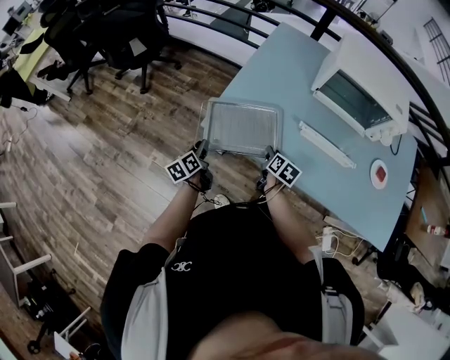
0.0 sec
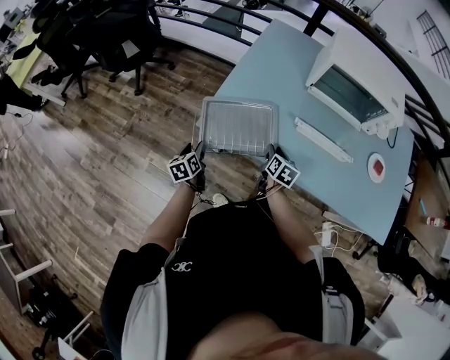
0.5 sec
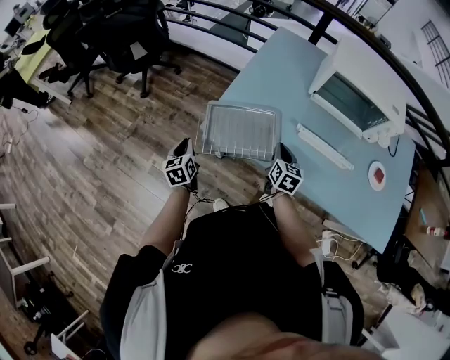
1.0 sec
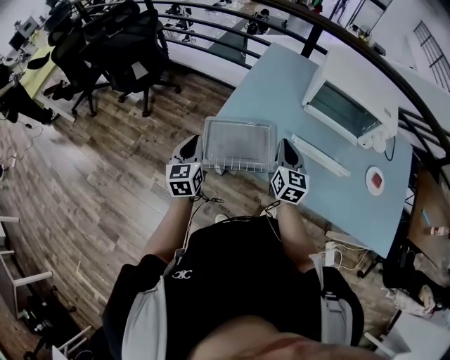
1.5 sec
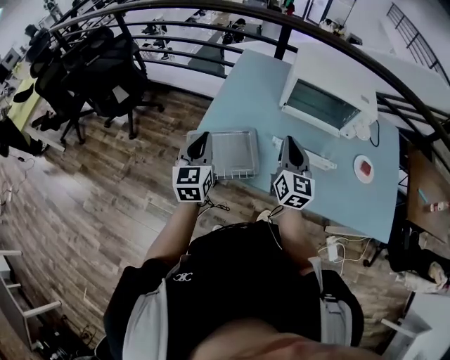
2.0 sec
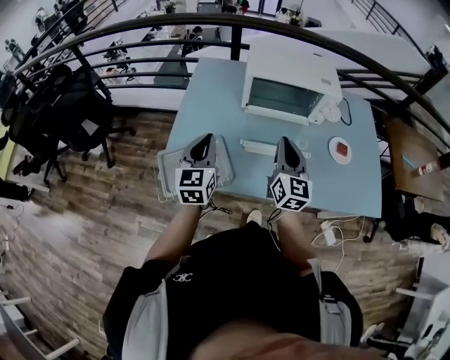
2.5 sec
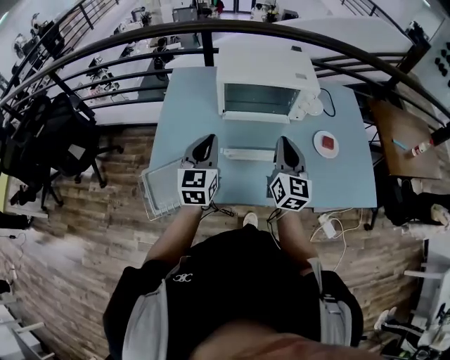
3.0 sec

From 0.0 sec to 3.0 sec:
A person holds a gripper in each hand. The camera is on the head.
From 0.0 sec to 1.5 sec: Both grippers travel together upward, roughly 20 cm. The left gripper rotates around the line of its fingers by some 40 degrees, clockwise from behind, and opens, then closes once more. Meanwhile the right gripper points its fingers approximately 30 degrees further upward, and closes up.
From 1.5 sec to 3.0 sec: The right gripper changes place by roughly 25 cm, and changes its angle by approximately 30 degrees. The left gripper ends up roughly 35 cm from where it was, and turns by some 30 degrees.

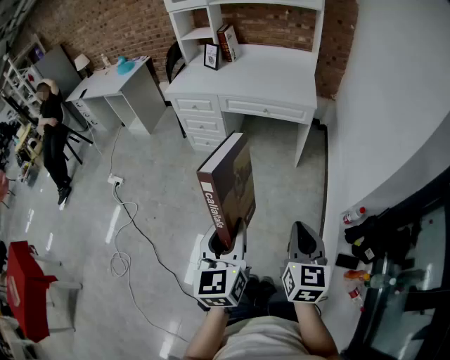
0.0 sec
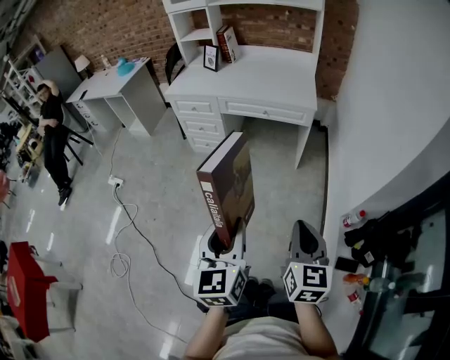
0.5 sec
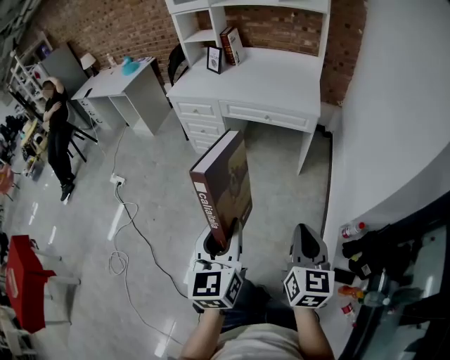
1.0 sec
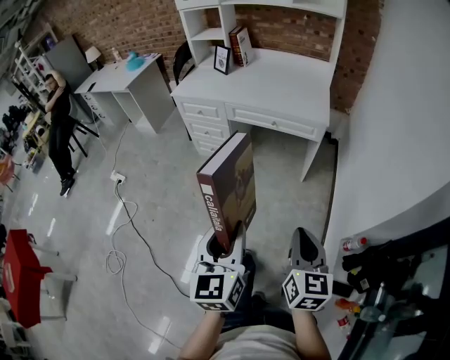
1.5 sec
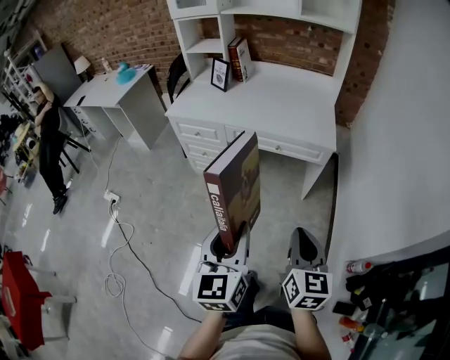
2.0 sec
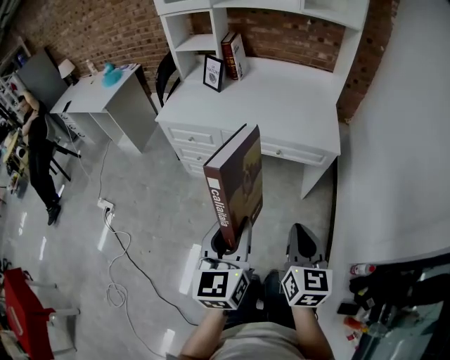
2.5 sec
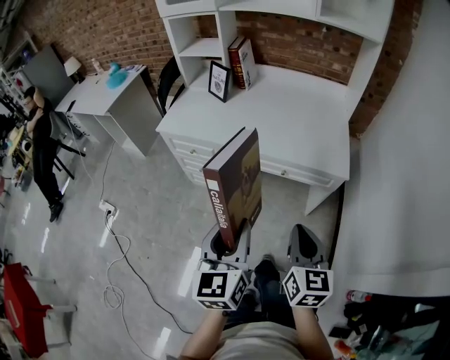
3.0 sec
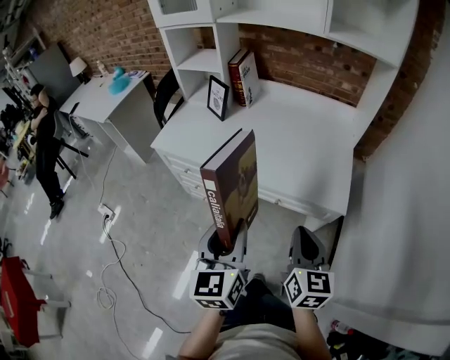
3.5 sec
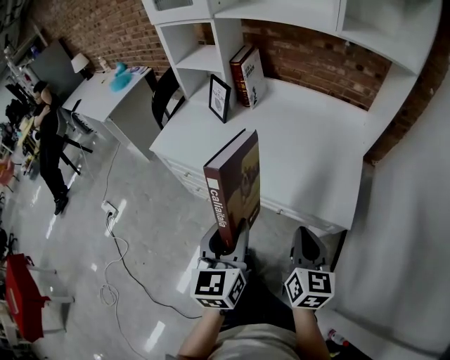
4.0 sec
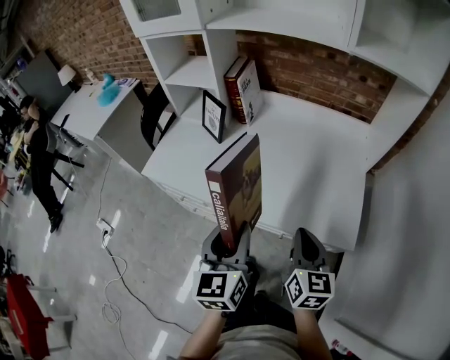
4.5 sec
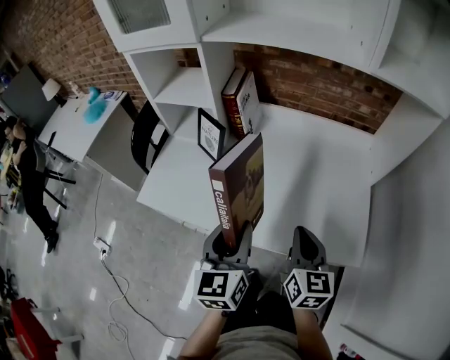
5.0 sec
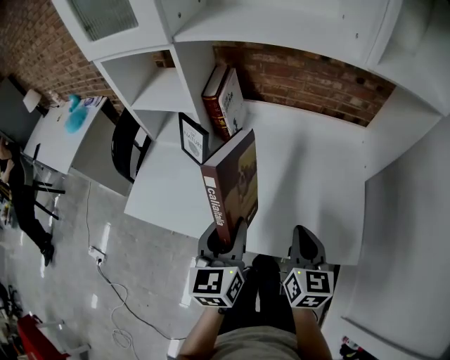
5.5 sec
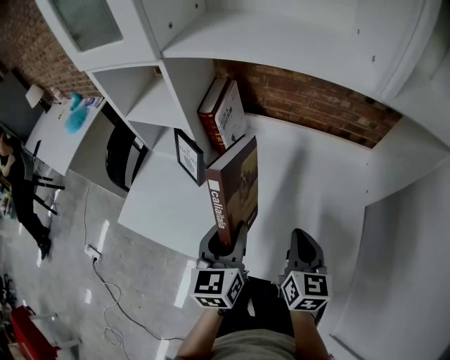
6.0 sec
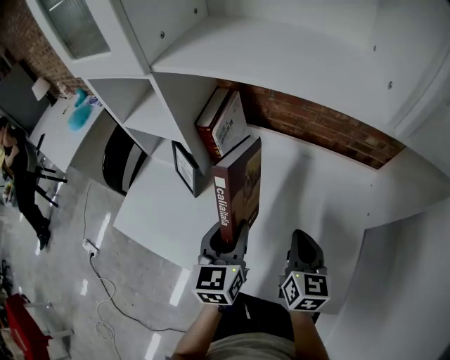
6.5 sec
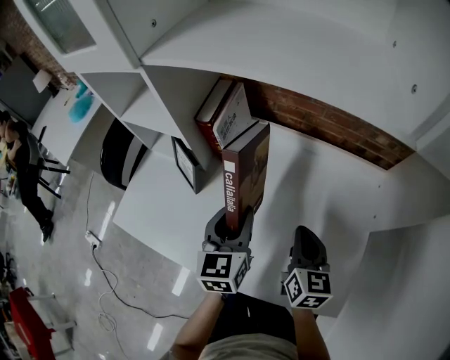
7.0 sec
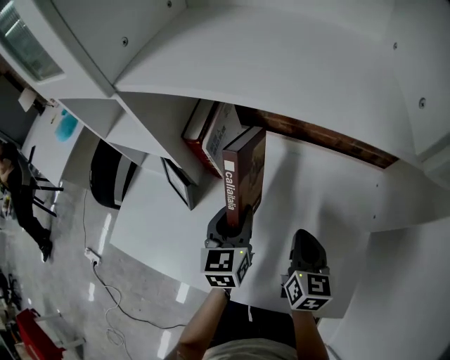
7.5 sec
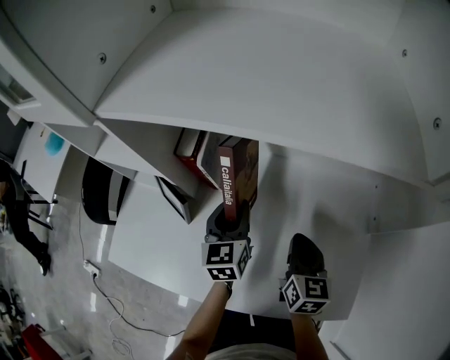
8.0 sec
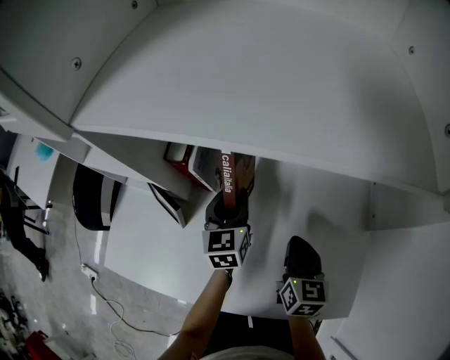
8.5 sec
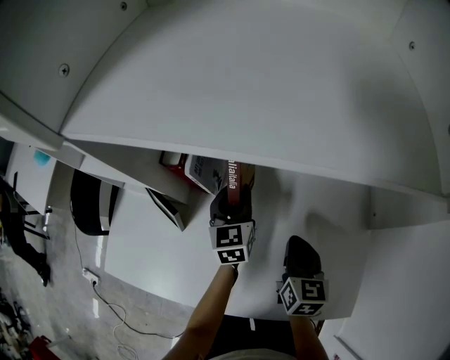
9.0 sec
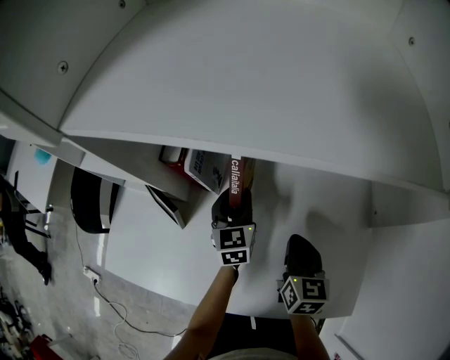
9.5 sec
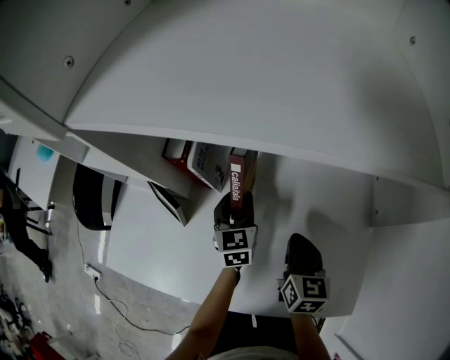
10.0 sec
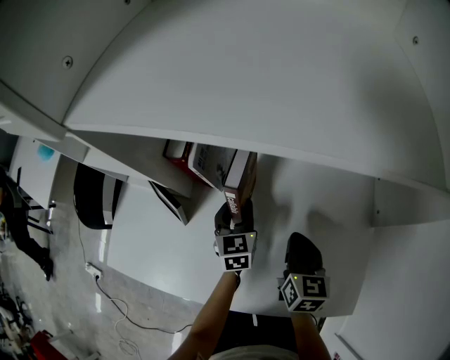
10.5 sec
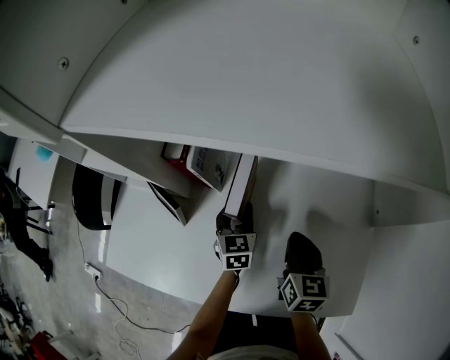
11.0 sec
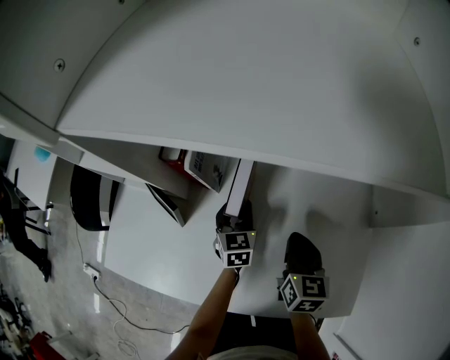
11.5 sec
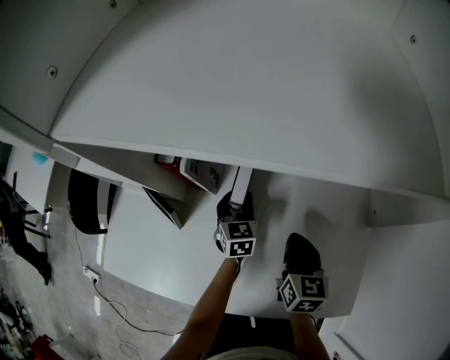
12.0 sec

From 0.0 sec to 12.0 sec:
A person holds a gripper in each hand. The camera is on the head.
From 0.0 sec to 2.0 sec: The two grippers go approximately 25 cm forward.
From 2.0 sec to 4.0 sec: Both grippers travel together forward, some 40 cm.
From 4.0 sec to 6.0 sec: Both grippers move forward, roughly 35 cm.
From 6.0 sec to 8.0 sec: The right gripper heads forward and downward, covering approximately 15 cm, while the left gripper shifts roughly 20 cm forward.
From 8.0 sec to 10.0 sec: The left gripper moves downward, roughly 5 cm.
From 10.0 sec to 12.0 sec: The left gripper heads downward, covering approximately 5 cm.

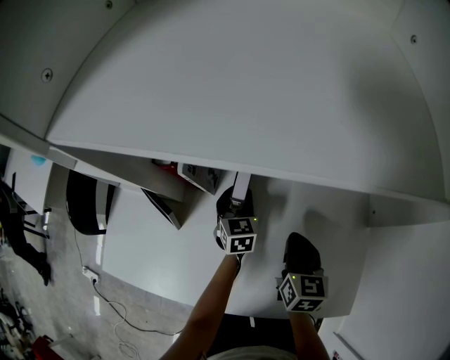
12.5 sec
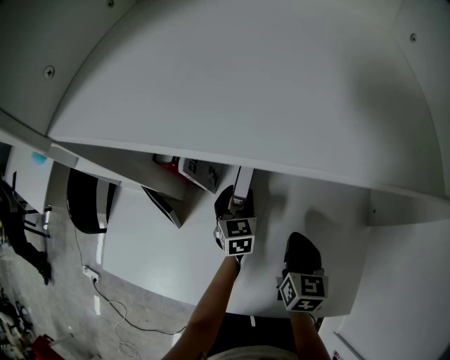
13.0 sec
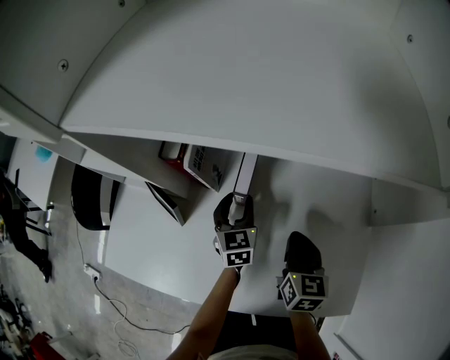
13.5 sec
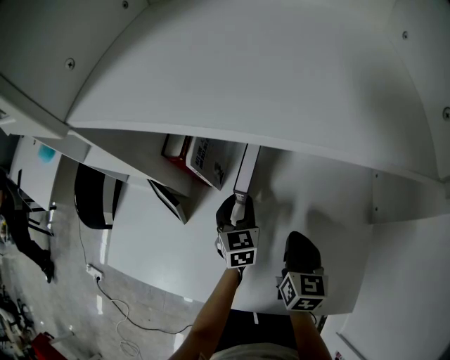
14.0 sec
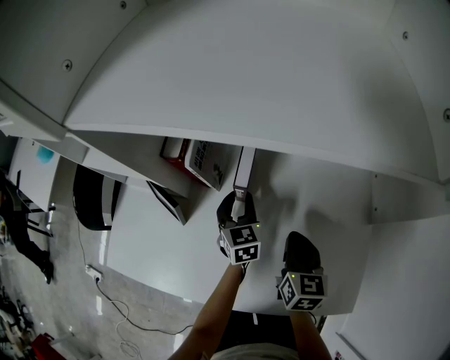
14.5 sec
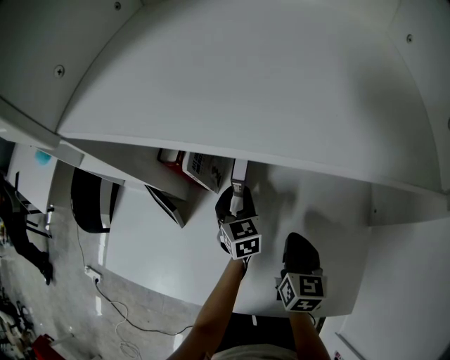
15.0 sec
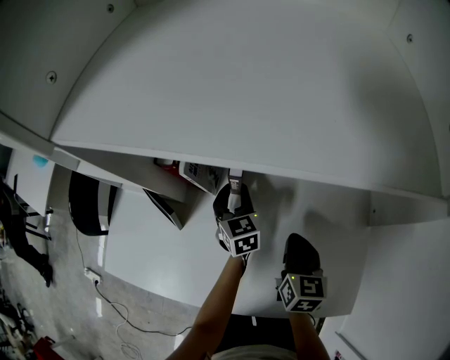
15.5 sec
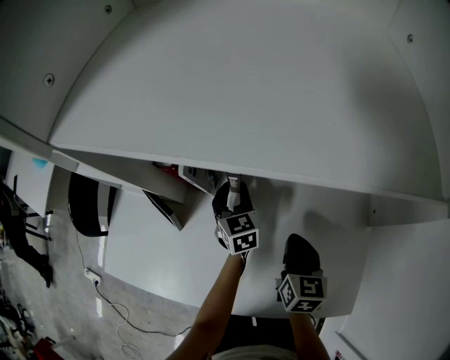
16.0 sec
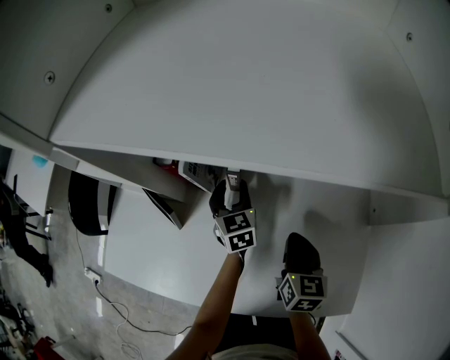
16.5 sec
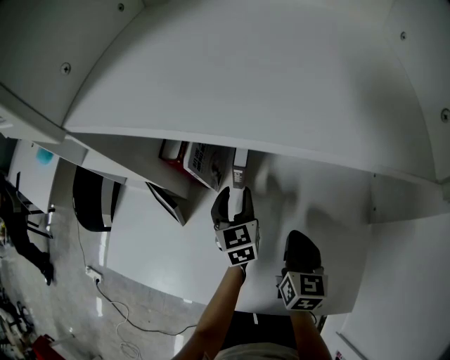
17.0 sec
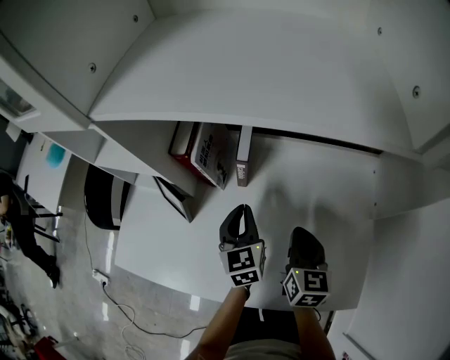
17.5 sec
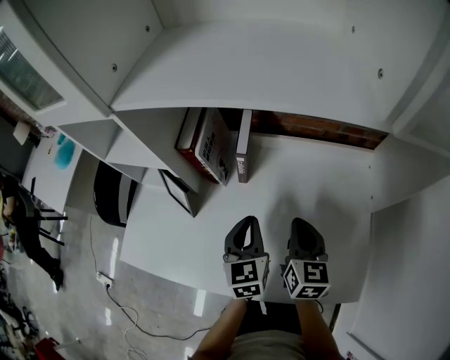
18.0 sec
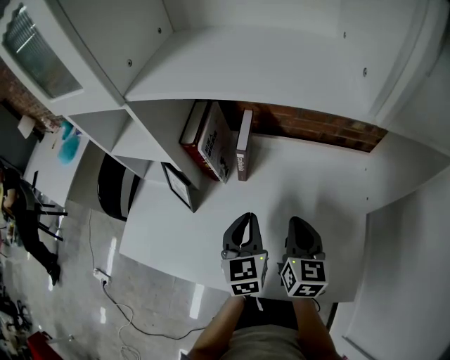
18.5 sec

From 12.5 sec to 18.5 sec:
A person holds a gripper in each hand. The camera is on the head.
From 12.5 sec to 16.5 sec: The grippers move only a little.
From 16.5 sec to 18.5 sec: The left gripper moves backward and upward, about 25 cm, and closes up; the right gripper goes about 10 cm upward and backward.

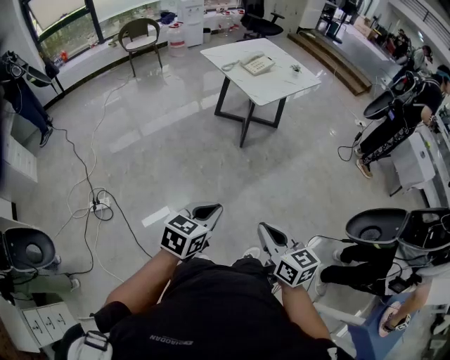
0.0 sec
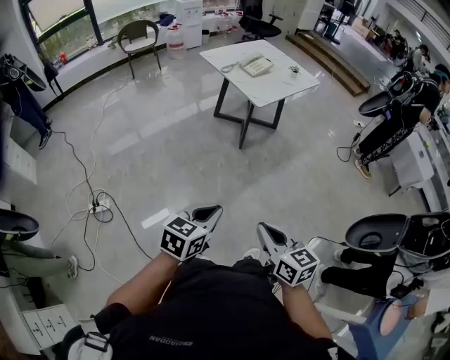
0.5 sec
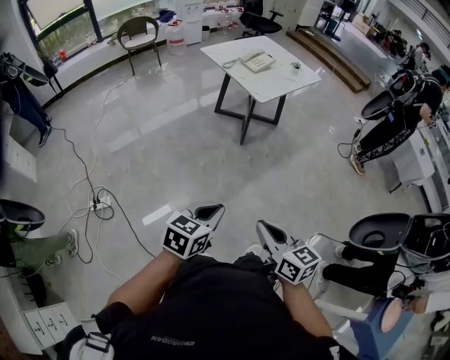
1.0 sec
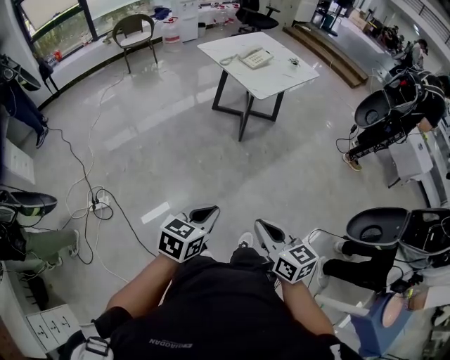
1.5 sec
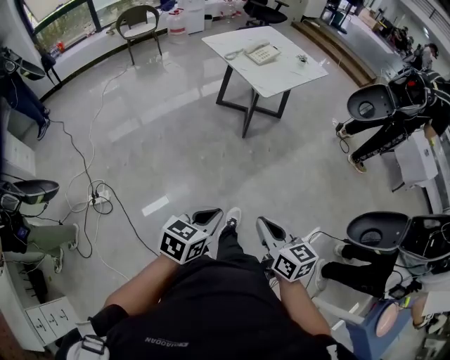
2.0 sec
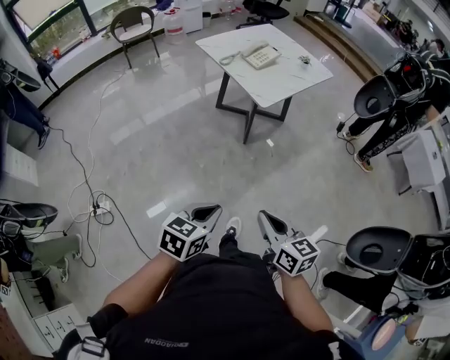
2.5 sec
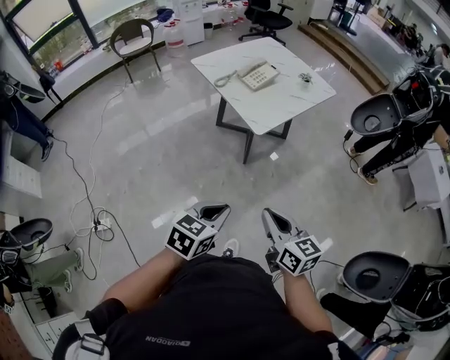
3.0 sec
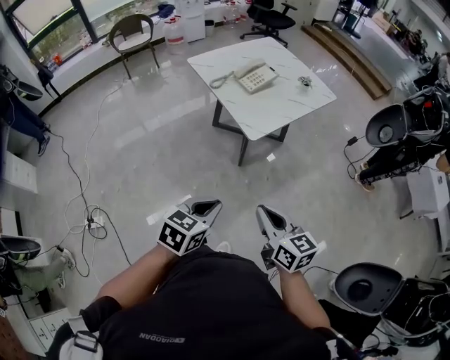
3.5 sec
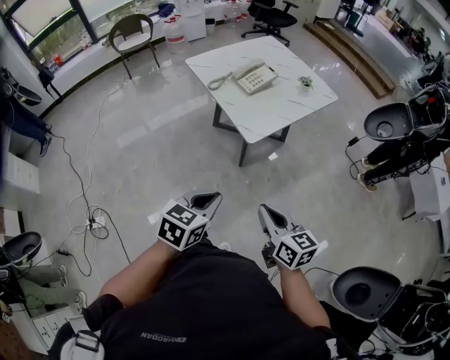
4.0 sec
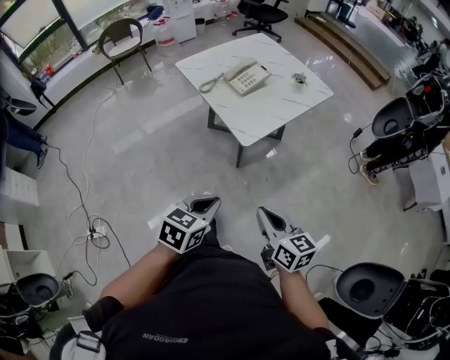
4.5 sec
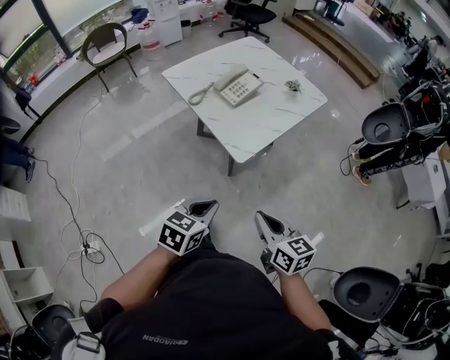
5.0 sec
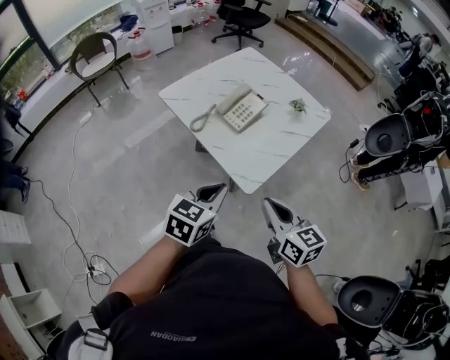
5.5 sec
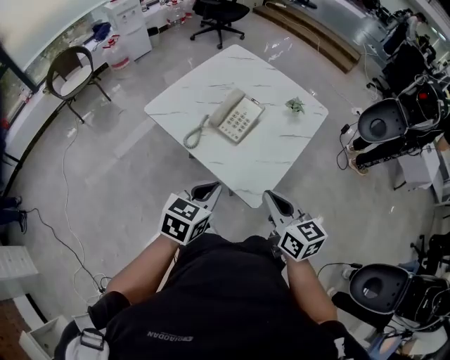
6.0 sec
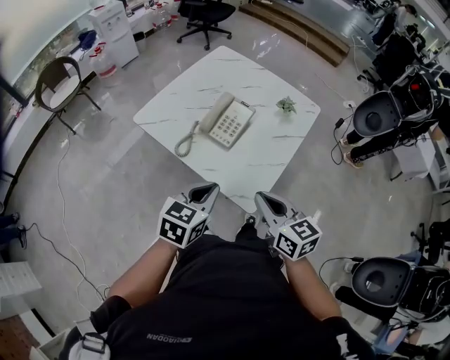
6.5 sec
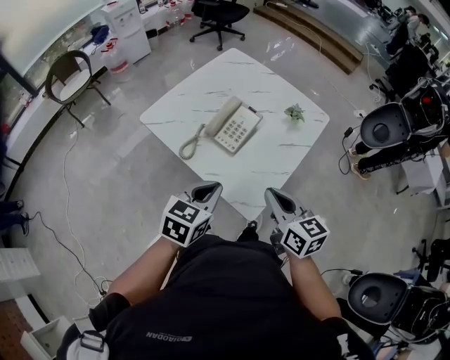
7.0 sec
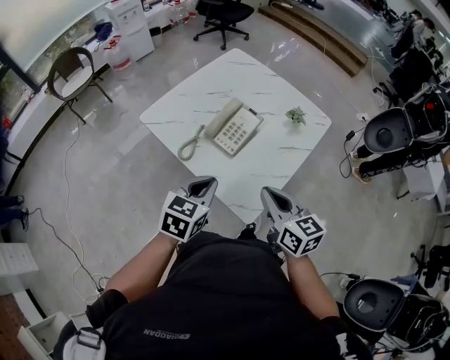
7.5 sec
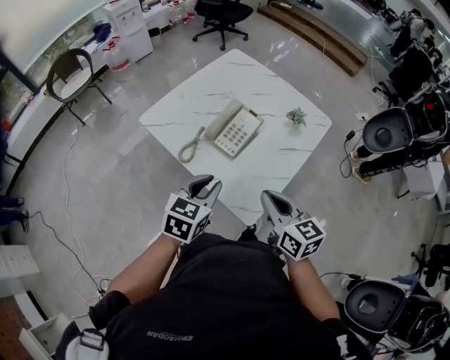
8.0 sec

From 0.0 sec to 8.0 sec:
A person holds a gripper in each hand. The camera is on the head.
From 0.0 sec to 2.0 sec: The right gripper changes place by roughly 5 cm.
From 2.0 sec to 4.0 sec: The grippers both shift forward by some 35 cm.
From 4.0 sec to 6.0 sec: The two grippers go about 35 cm forward.
From 6.0 sec to 8.0 sec: Both grippers move forward, about 10 cm.
